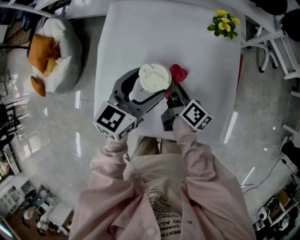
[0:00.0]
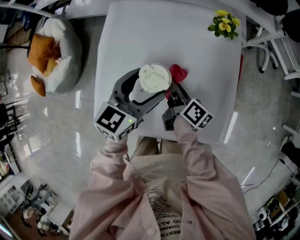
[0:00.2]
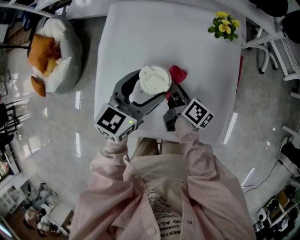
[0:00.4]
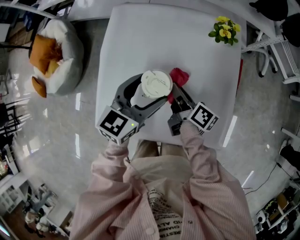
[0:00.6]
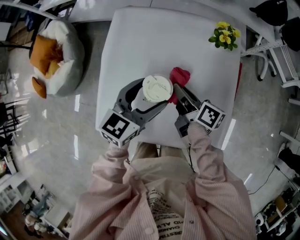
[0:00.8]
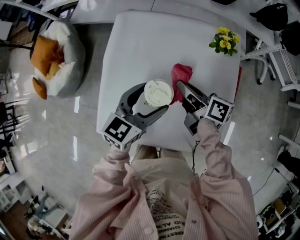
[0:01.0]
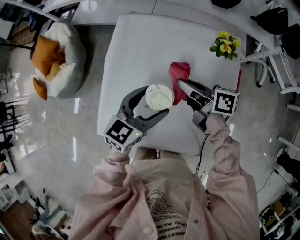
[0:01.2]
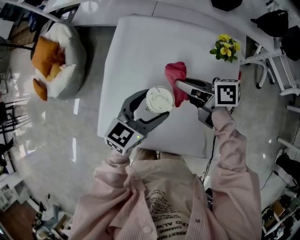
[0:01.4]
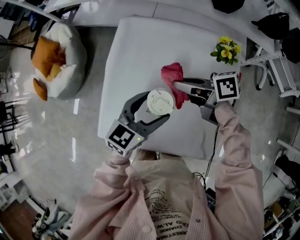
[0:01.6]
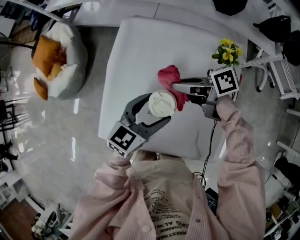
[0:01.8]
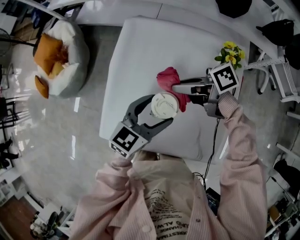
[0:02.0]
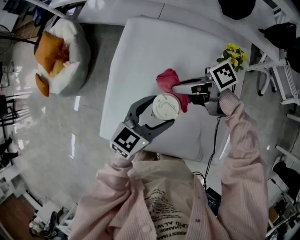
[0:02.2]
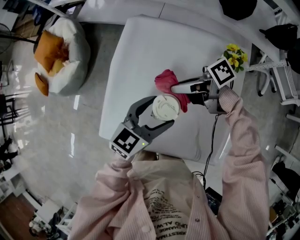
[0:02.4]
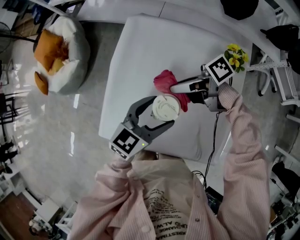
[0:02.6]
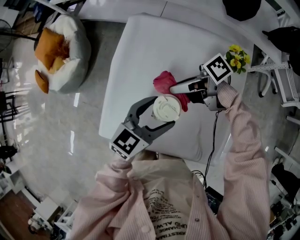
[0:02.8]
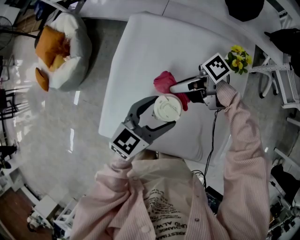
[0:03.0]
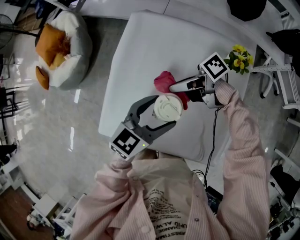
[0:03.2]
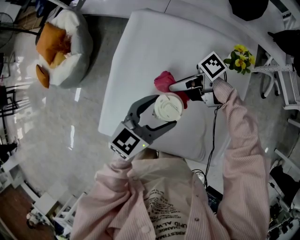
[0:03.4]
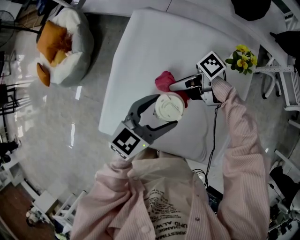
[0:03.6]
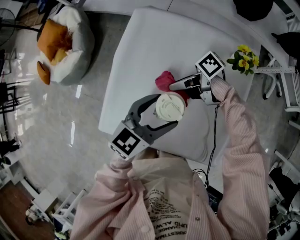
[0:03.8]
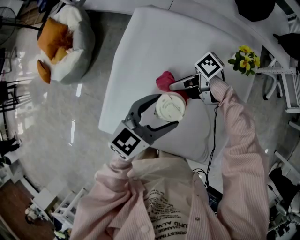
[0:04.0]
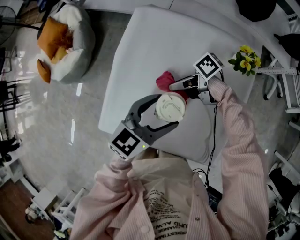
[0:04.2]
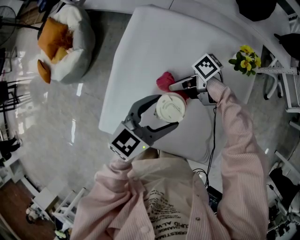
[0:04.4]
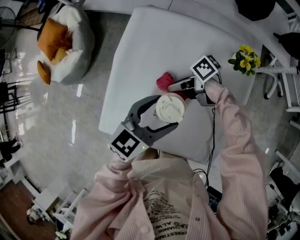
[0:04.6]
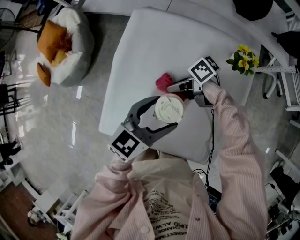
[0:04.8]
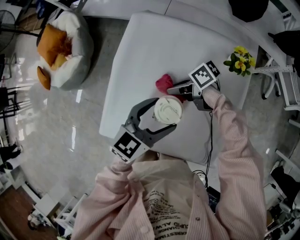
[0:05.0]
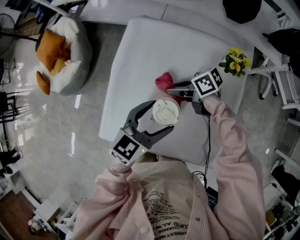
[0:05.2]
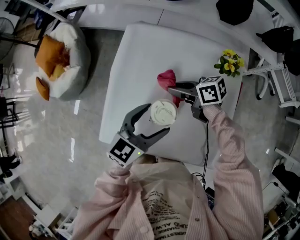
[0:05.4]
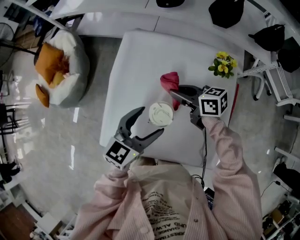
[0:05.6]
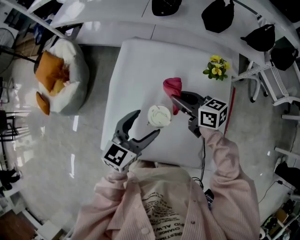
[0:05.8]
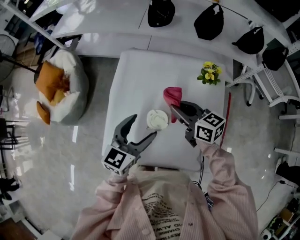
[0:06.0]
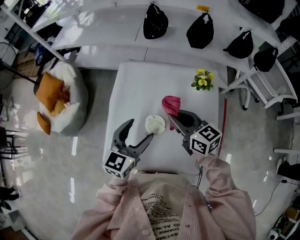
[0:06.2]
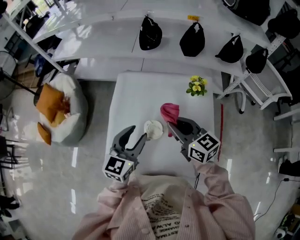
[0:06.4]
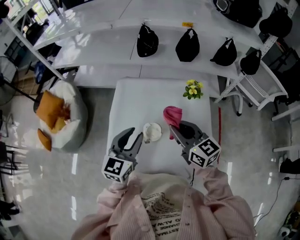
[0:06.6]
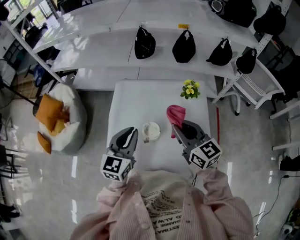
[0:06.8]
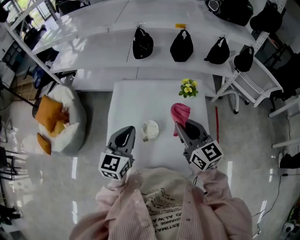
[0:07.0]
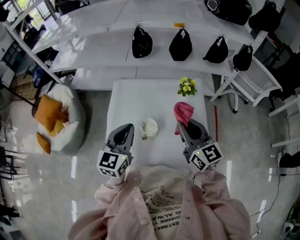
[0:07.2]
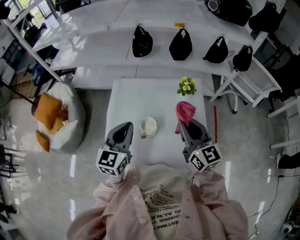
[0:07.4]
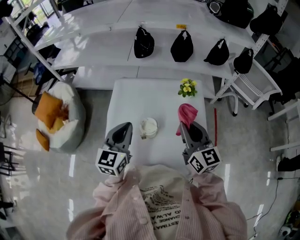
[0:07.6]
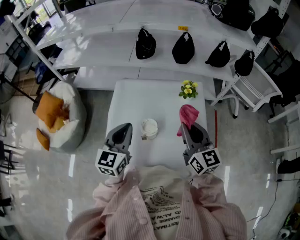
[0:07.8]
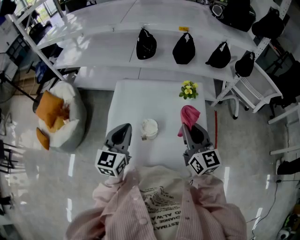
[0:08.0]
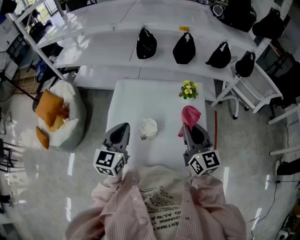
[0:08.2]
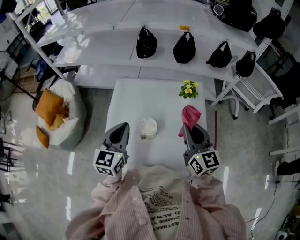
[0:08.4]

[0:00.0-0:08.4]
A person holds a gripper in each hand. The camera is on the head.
0:00.0 to 0:01.4: The right gripper heads upward and forward, covering roughly 10 cm, and swivels approximately 50 degrees.
0:01.4 to 0:02.8: The right gripper ends up some 5 cm from where it was, and changes its angle by approximately 40 degrees.
0:02.8 to 0:04.2: The right gripper travels downward by roughly 10 cm.
0:04.2 to 0:05.6: The right gripper goes some 10 cm upward, and turns by some 50 degrees.
0:05.6 to 0:07.0: The right gripper moves upward and backward, approximately 25 cm, and rotates some 50 degrees. Meanwhile the left gripper moves upward, roughly 10 cm, and closes up.
0:07.0 to 0:08.4: There are only small adjustments of the grippers.

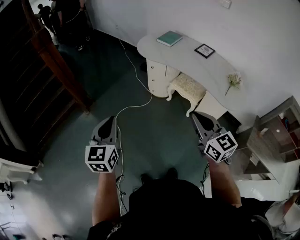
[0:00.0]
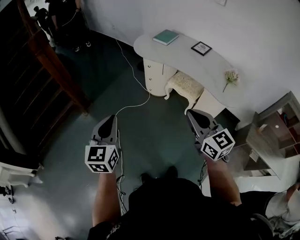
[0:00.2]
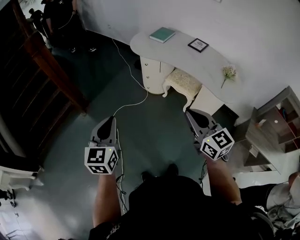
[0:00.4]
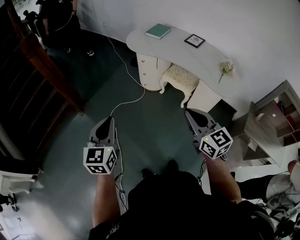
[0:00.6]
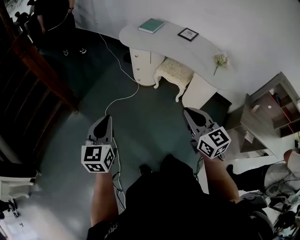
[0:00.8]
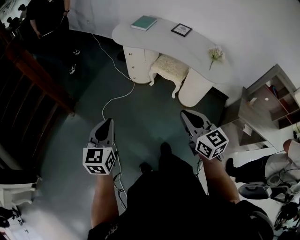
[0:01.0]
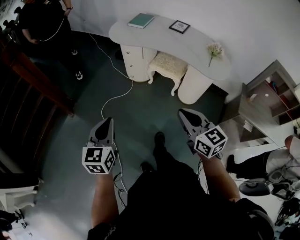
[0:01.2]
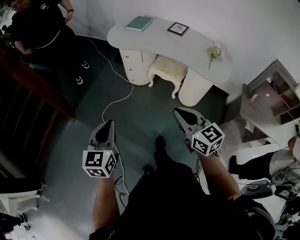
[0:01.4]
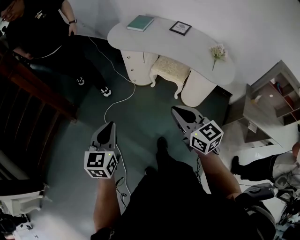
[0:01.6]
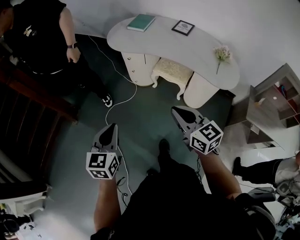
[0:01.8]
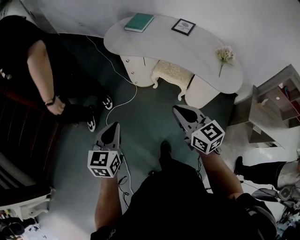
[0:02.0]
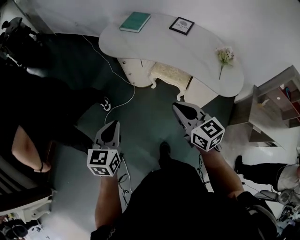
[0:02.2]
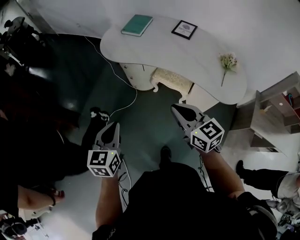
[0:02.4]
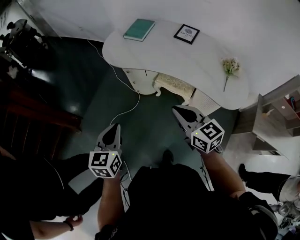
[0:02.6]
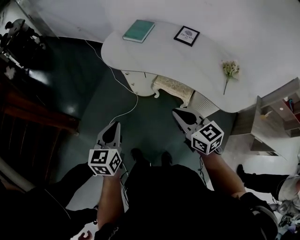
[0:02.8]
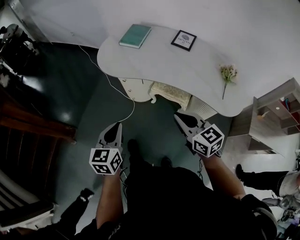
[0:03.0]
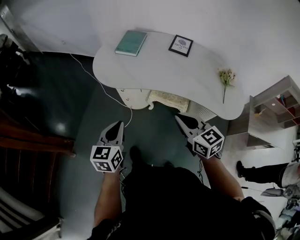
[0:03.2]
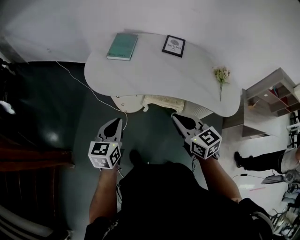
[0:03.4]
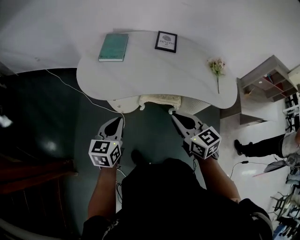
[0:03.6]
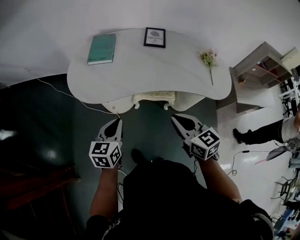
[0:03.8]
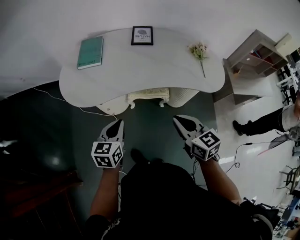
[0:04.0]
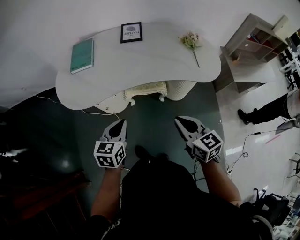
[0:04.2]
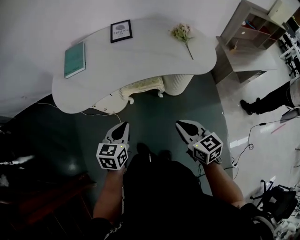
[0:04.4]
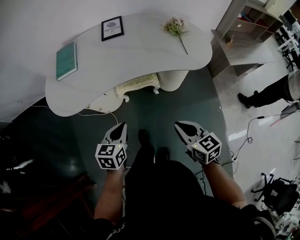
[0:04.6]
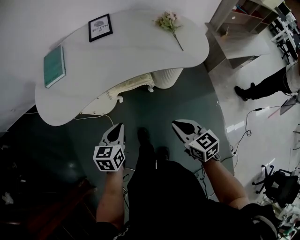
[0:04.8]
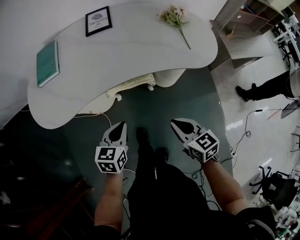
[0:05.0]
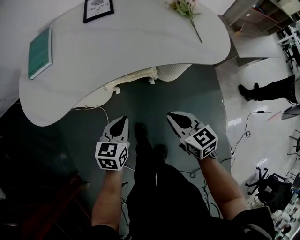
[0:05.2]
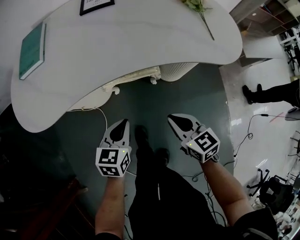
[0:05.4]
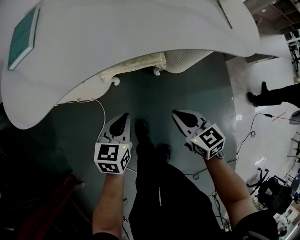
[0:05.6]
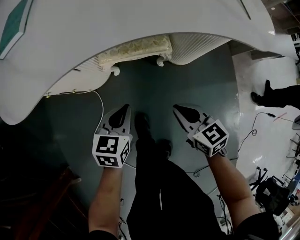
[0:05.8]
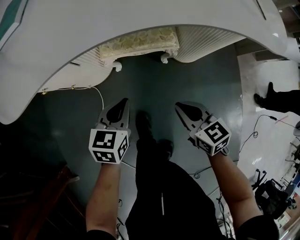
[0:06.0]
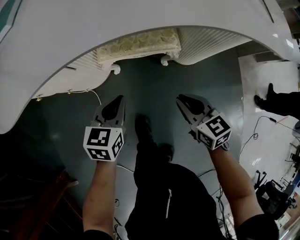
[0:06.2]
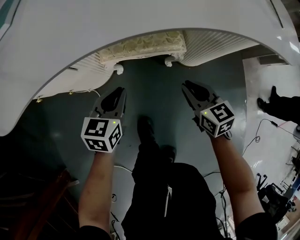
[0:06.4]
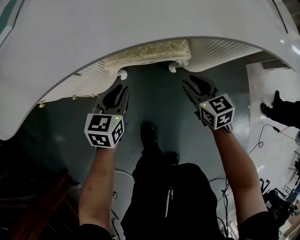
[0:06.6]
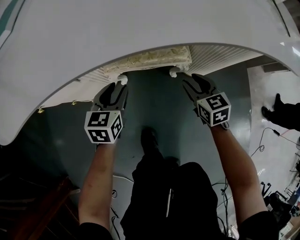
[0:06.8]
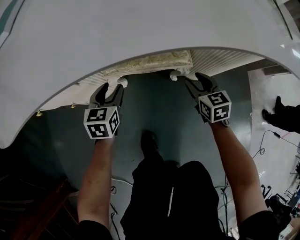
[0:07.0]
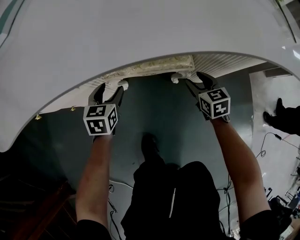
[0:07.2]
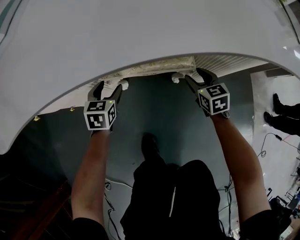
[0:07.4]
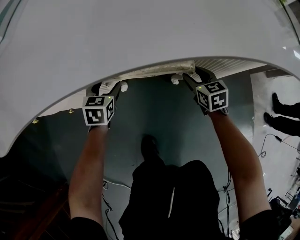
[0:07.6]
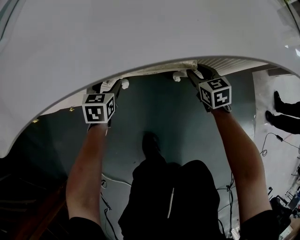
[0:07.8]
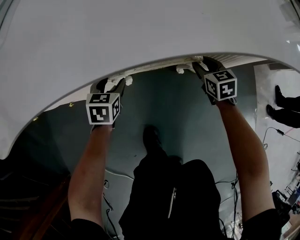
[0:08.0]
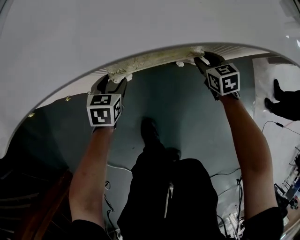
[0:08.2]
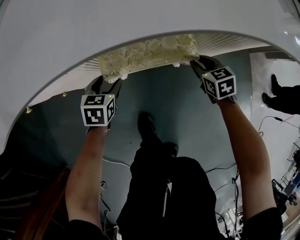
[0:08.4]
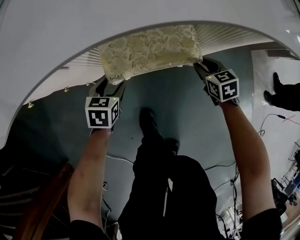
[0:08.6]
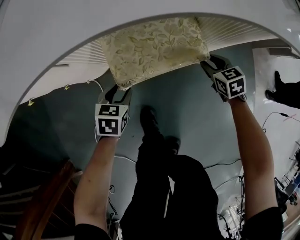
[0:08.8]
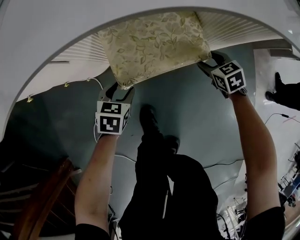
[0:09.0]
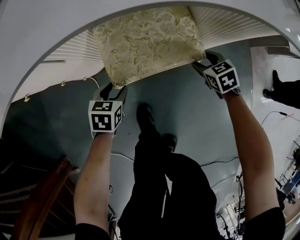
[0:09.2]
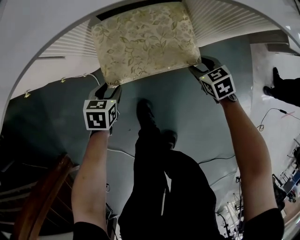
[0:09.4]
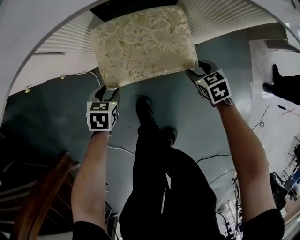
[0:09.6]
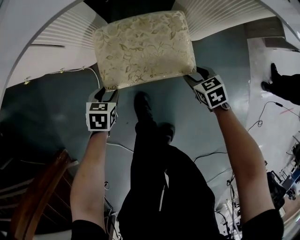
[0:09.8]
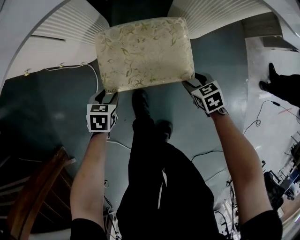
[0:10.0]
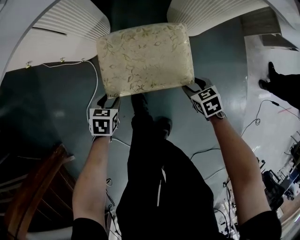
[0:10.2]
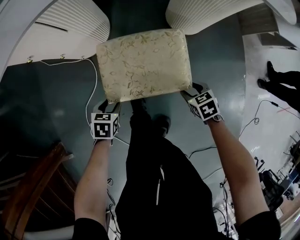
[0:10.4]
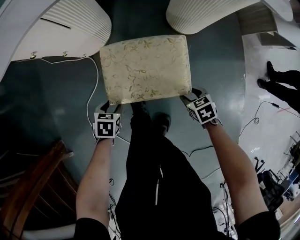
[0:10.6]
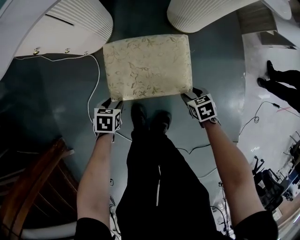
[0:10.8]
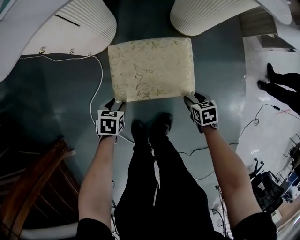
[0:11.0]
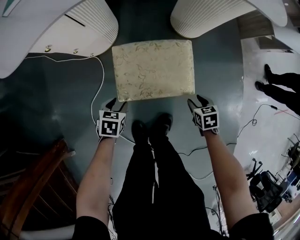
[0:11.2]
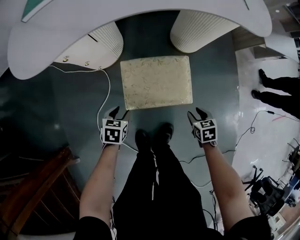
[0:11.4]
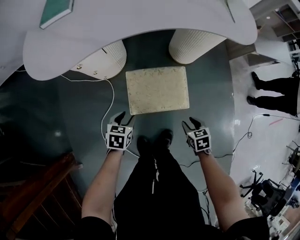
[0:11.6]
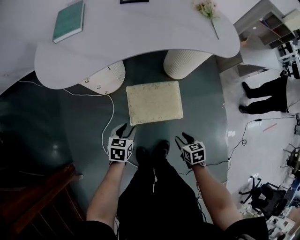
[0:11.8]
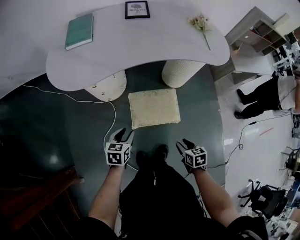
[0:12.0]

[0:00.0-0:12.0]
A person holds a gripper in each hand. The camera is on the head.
0:00.0 to 0:01.6: Both grippers move downward, roughly 5 cm. The right gripper reaches approximately 5 cm backward, then returns.
0:01.6 to 0:03.0: The two grippers go approximately 30 cm forward.
0:03.0 to 0:04.4: The left gripper shifts by some 15 cm, and turns by roughly 40 degrees, while the right gripper travels downward by some 10 cm, and rotates about 40 degrees.
0:04.4 to 0:06.0: The grippers both shift downward by roughly 40 cm.
0:06.0 to 0:07.6: The left gripper shifts approximately 25 cm forward, downward and to the left, and opens its fingers, while the right gripper travels forward and downward by approximately 30 cm, and opens its fingers.
0:07.6 to 0:09.0: The left gripper heads backward, covering roughly 15 cm. Meanwhile the right gripper heads backward and to the right, covering some 10 cm, and closes and opens again.
0:09.0 to 0:10.4: The two grippers go about 20 cm backward.
0:10.4 to 0:12.0: The right gripper shifts some 40 cm upward and backward, and turns by approximately 30 degrees. The left gripper moves upward, some 35 cm, and rotates some 30 degrees.

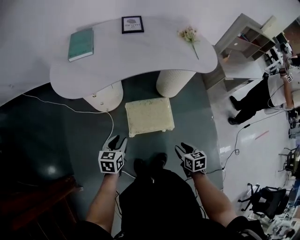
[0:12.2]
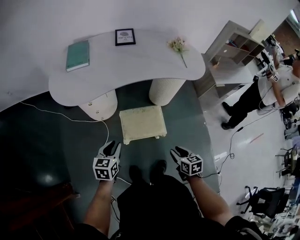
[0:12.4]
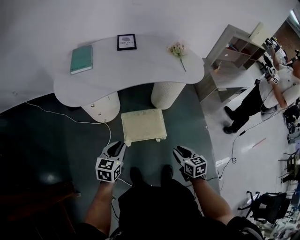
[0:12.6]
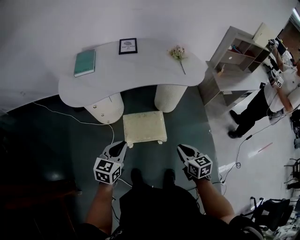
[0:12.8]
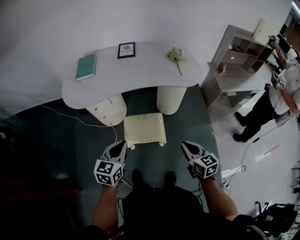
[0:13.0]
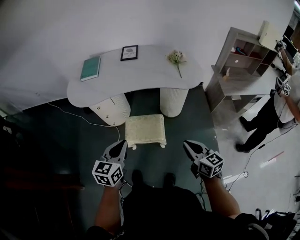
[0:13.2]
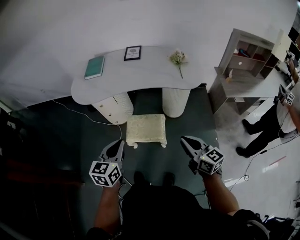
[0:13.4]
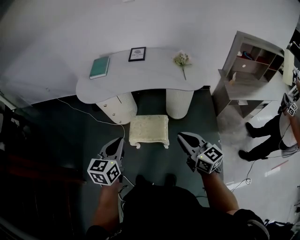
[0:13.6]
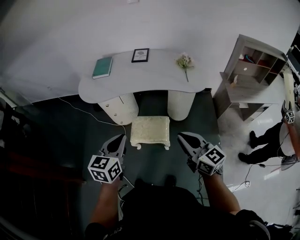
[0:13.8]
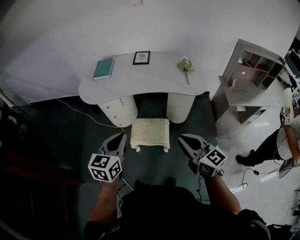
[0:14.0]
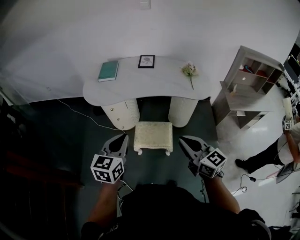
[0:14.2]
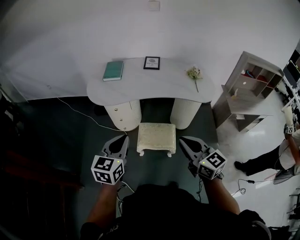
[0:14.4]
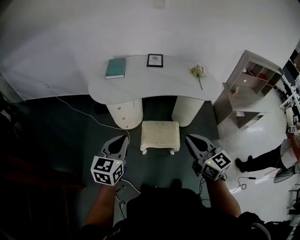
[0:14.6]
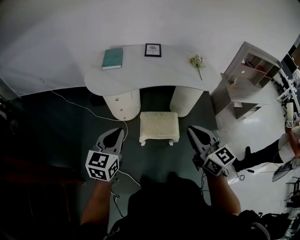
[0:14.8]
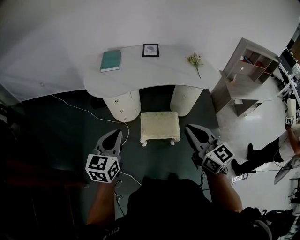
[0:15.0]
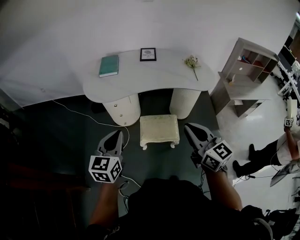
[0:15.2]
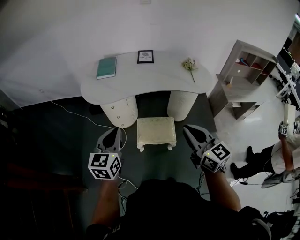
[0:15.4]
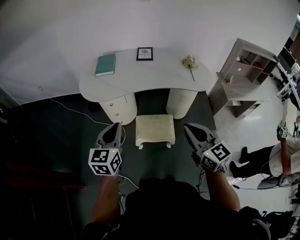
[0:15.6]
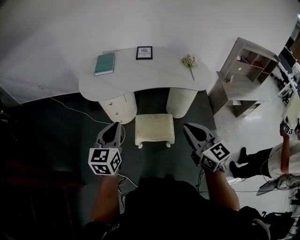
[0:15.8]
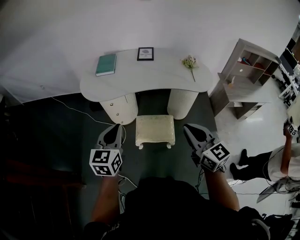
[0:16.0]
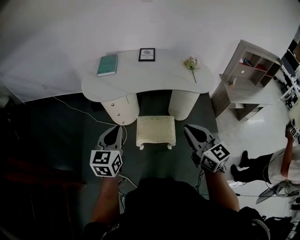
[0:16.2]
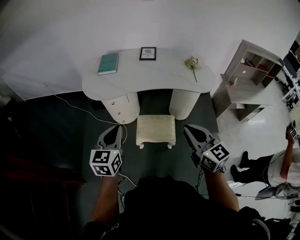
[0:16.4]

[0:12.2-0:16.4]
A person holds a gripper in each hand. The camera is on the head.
0:12.2 to 0:13.6: Both grippers move upward and to the right, about 35 cm. The left gripper turns by approximately 20 degrees, and closes up. The right gripper tilts its fingers roughly 50 degrees upward, and closes.
0:13.6 to 0:15.0: The left gripper shifts approximately 20 cm to the left; the right gripper goes about 20 cm to the left and upward.
0:15.0 to 0:16.4: Both grippers move to the right, about 5 cm.
